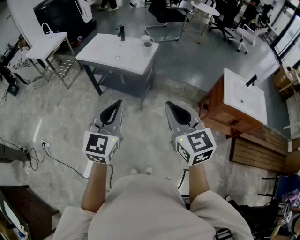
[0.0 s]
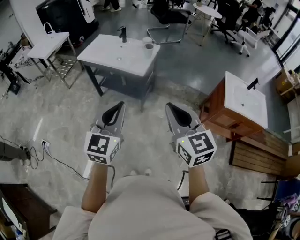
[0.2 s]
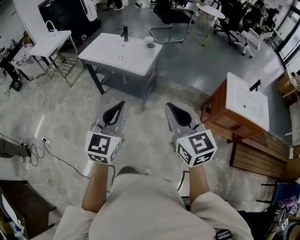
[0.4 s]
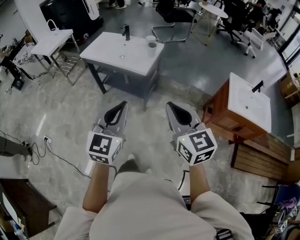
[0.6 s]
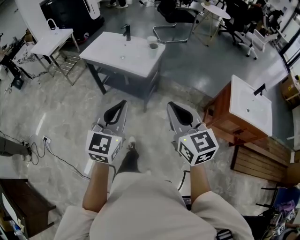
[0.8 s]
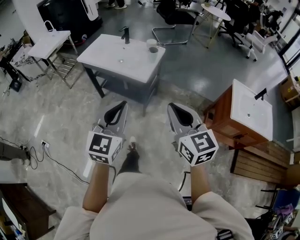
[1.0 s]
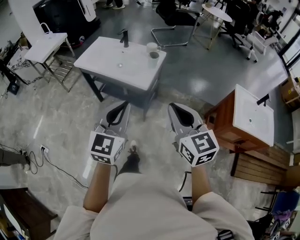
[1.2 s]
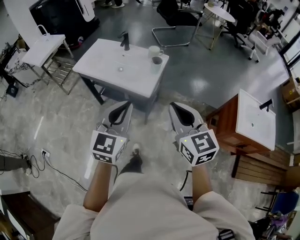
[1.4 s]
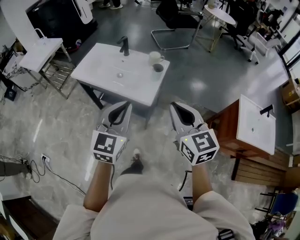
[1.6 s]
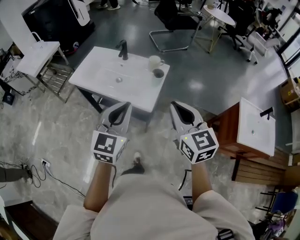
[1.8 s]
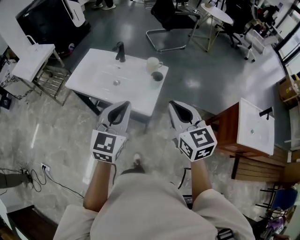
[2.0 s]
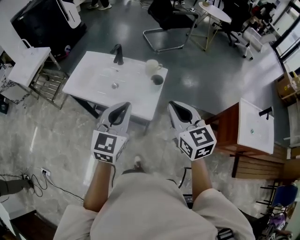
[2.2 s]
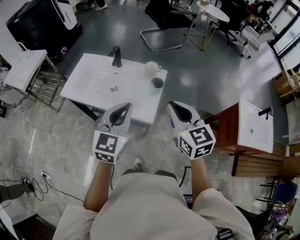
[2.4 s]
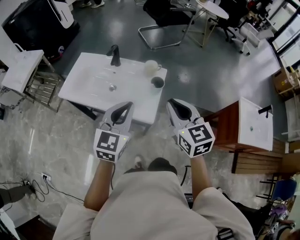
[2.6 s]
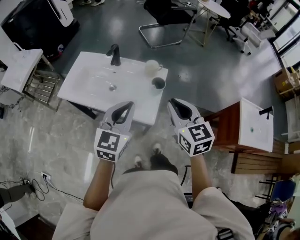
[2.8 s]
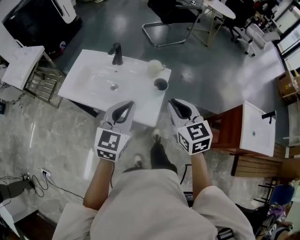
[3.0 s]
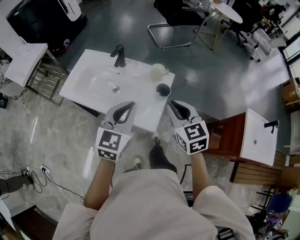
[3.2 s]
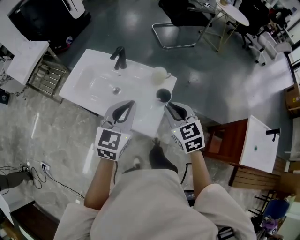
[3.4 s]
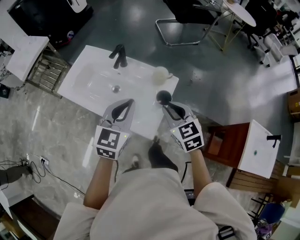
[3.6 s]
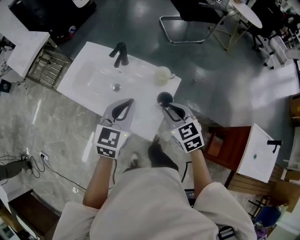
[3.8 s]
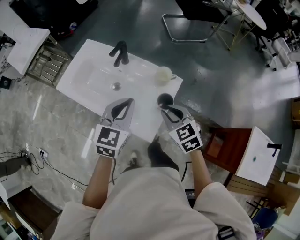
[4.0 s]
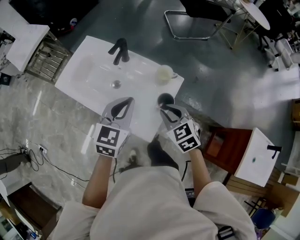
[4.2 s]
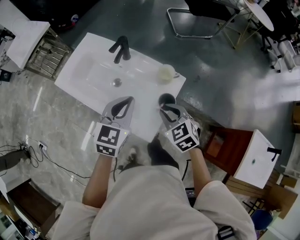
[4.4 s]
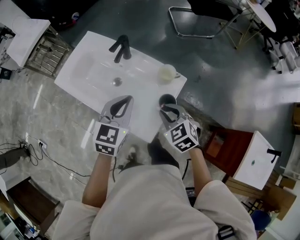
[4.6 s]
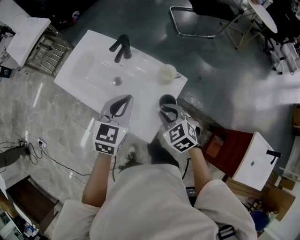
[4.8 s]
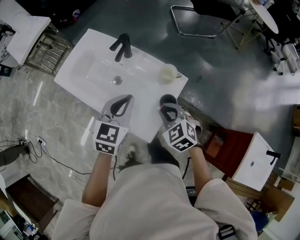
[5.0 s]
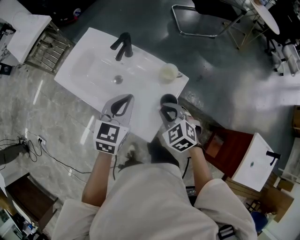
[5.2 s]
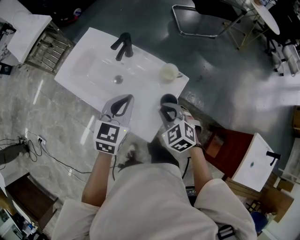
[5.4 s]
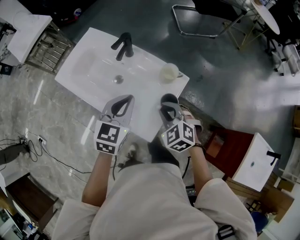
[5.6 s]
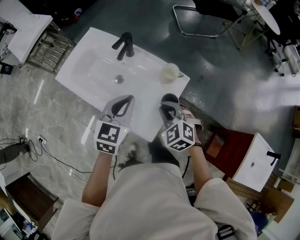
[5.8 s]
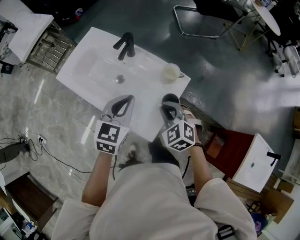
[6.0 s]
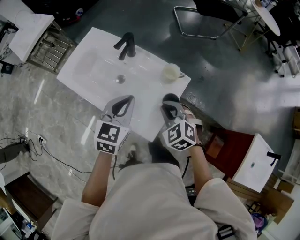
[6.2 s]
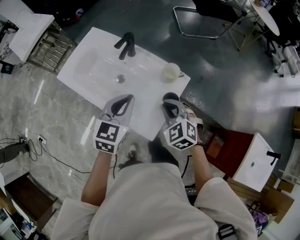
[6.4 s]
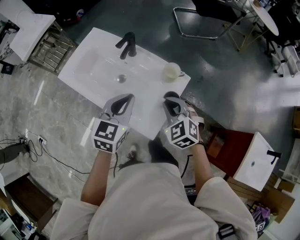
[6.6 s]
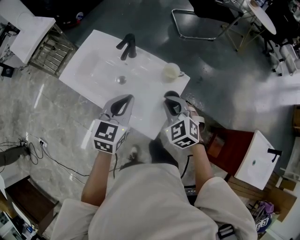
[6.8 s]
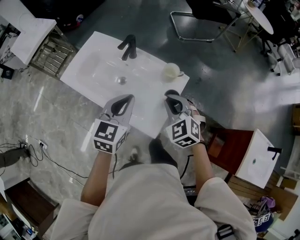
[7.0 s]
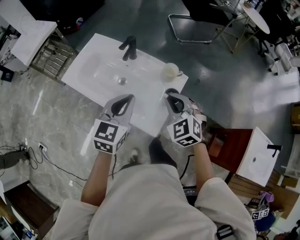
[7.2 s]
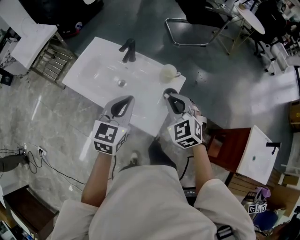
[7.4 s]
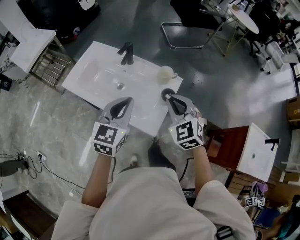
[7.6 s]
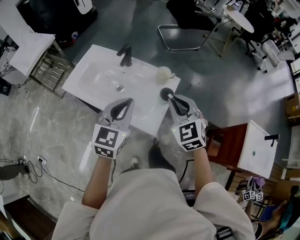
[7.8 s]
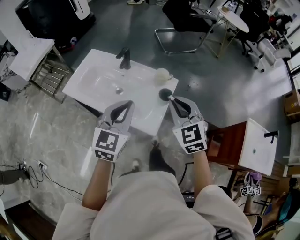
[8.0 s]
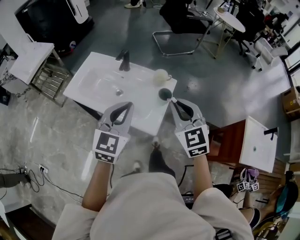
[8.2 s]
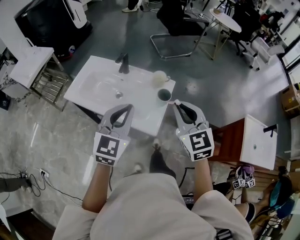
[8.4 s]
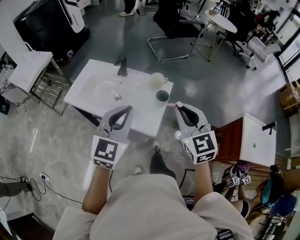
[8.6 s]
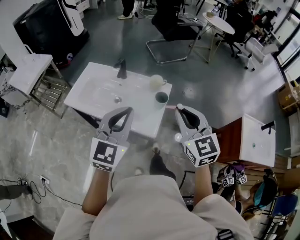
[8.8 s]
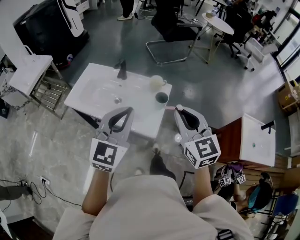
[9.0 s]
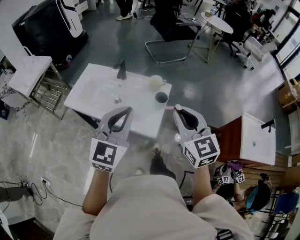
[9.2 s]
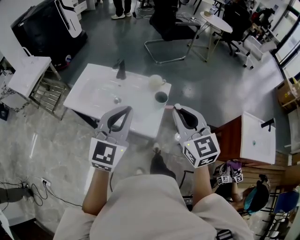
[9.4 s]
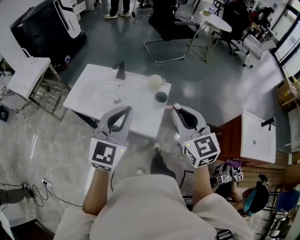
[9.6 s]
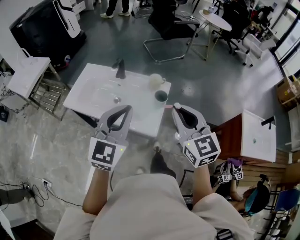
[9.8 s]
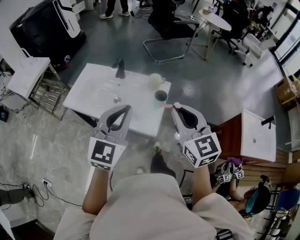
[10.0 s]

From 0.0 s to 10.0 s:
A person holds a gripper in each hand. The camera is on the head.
From 0.0 s to 1.4 s: The grippers both shift forward by roughly 25 cm.
From 1.4 s to 2.8 s: The two grippers go roughly 25 cm forward.
From 2.8 s to 4.2 s: The left gripper moves forward and downward, approximately 20 cm. The right gripper heads downward and forward, covering some 25 cm, and rotates approximately 30 degrees.
From 4.2 s to 5.8 s: The right gripper rotates some 20 degrees.
From 5.8 s to 7.2 s: The left gripper goes about 5 cm upward and backward; the right gripper travels upward by some 10 cm.
From 7.2 s to 8.6 s: The left gripper shifts some 15 cm backward and upward, and turns by approximately 20 degrees, while the right gripper heads upward and backward, covering approximately 20 cm, and rotates approximately 30 degrees.
From 8.6 s to 10.0 s: The grippers make only small movements.

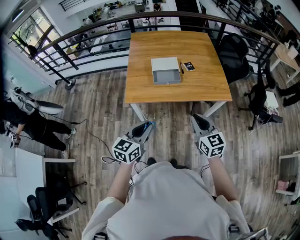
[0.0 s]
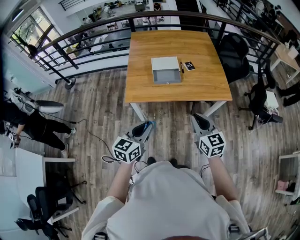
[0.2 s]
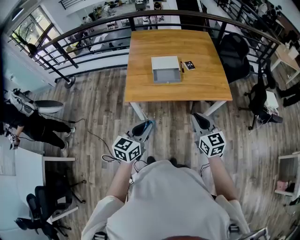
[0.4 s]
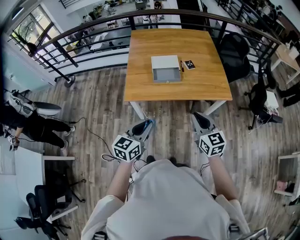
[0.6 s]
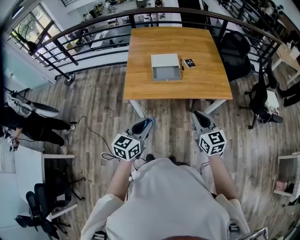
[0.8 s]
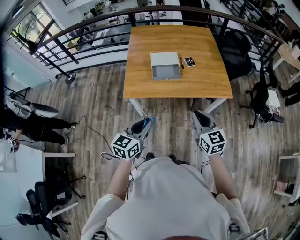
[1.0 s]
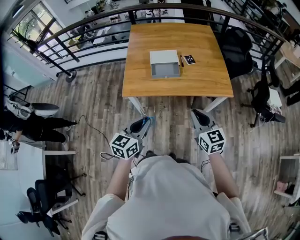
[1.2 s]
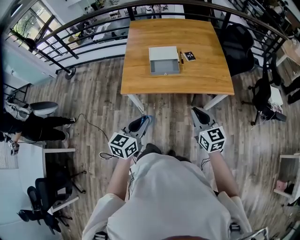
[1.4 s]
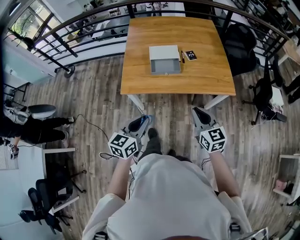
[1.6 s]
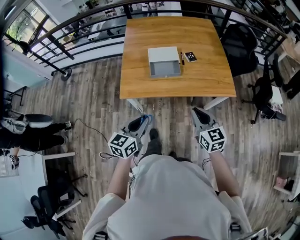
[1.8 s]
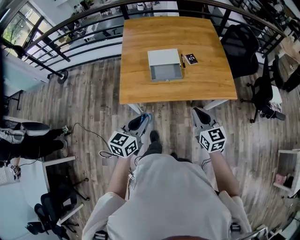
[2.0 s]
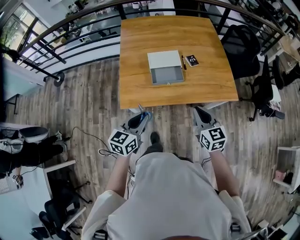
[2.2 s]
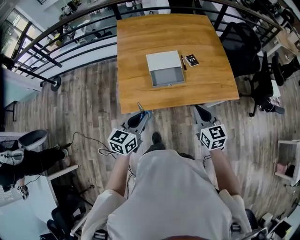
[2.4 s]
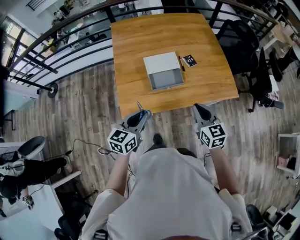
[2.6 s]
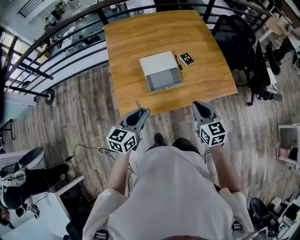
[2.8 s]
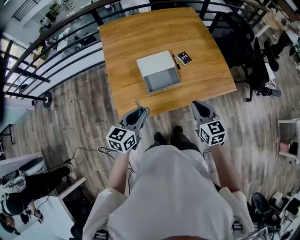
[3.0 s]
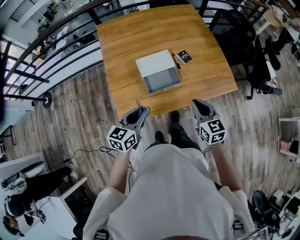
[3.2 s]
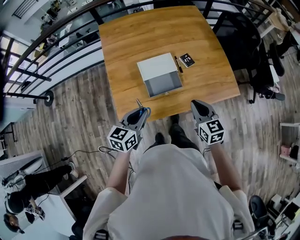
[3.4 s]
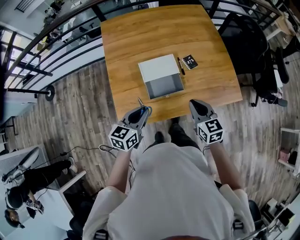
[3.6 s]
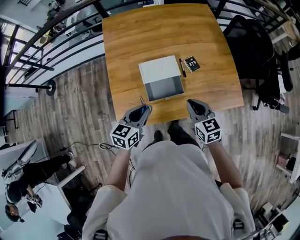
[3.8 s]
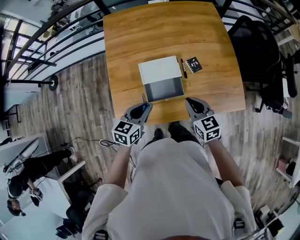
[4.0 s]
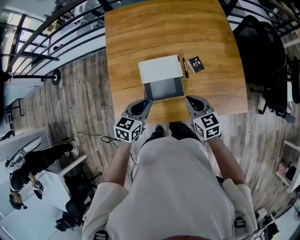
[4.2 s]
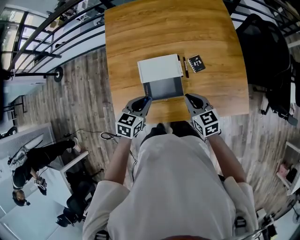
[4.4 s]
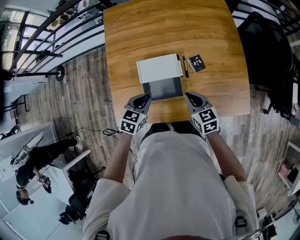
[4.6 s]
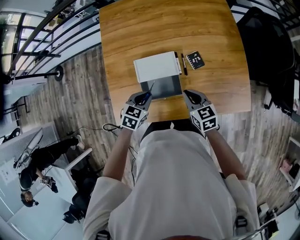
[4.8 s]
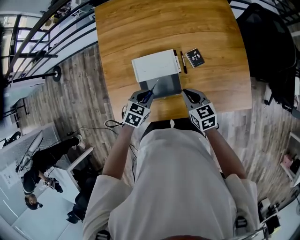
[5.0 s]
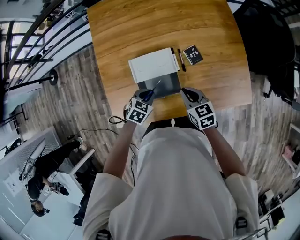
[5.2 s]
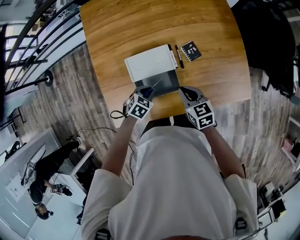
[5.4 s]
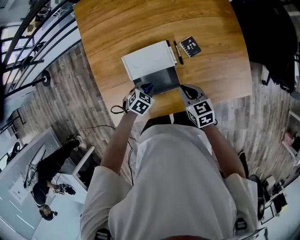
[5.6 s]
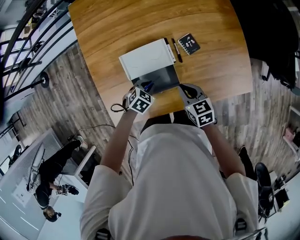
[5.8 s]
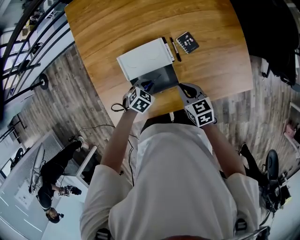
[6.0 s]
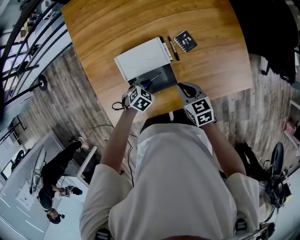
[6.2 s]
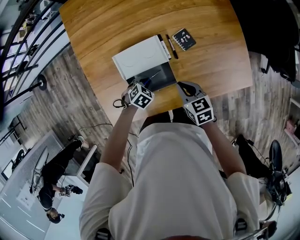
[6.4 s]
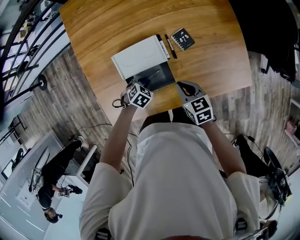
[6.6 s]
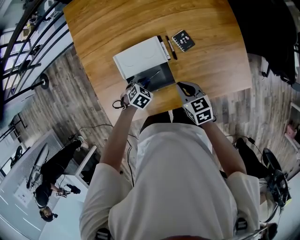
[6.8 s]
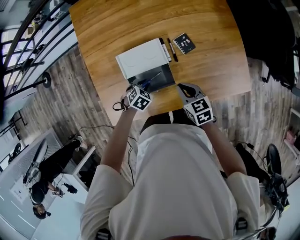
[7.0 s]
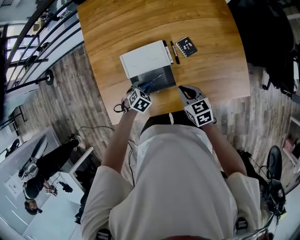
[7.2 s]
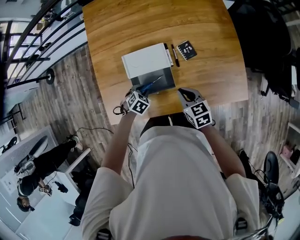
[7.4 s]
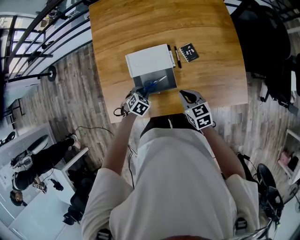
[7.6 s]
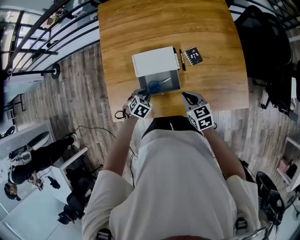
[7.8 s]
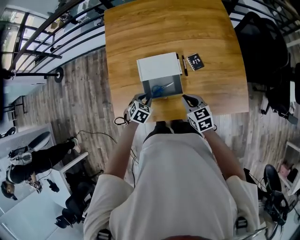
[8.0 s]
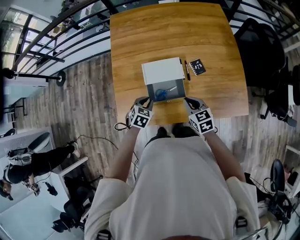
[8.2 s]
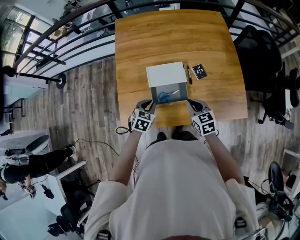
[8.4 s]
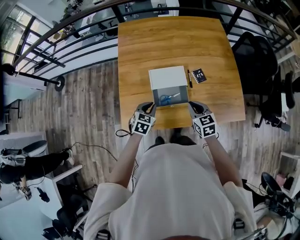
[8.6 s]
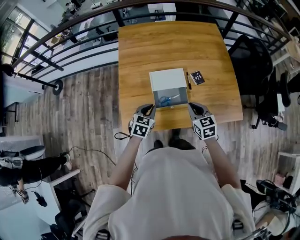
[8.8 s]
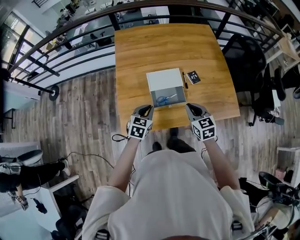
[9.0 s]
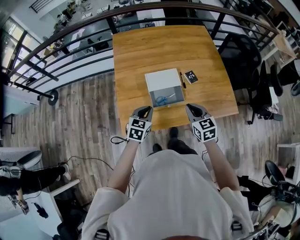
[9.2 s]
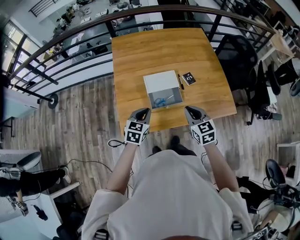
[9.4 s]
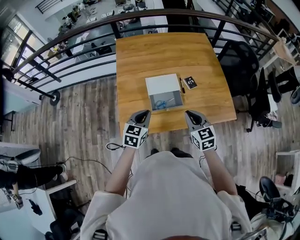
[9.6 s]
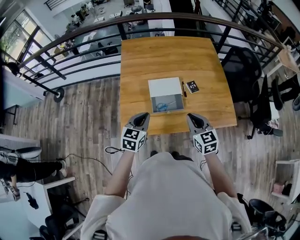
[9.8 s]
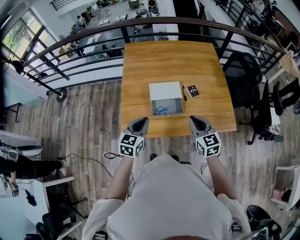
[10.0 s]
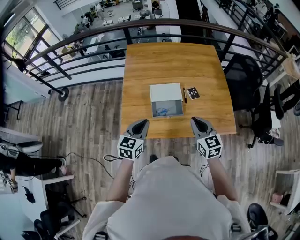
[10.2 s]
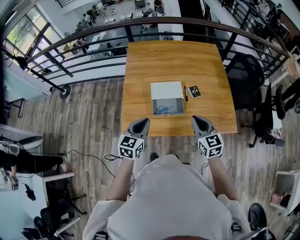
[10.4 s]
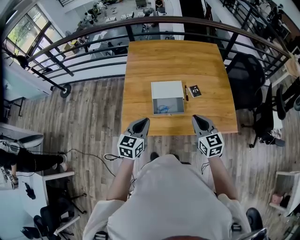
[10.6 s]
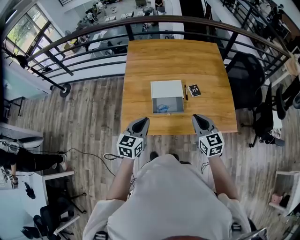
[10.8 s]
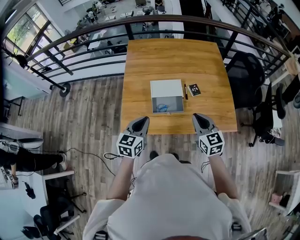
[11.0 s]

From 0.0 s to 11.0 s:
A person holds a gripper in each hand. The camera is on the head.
From 0.0 s to 1.6 s: The right gripper goes some 5 cm forward; the left gripper changes place by approximately 5 cm.
From 1.6 s to 3.2 s: The grippers both shift forward and to the left by approximately 30 cm.
From 3.2 s to 4.8 s: The left gripper is displaced forward, downward and to the right by some 25 cm, and rotates roughly 30 degrees, while the right gripper shifts about 25 cm forward and downward, and swivels roughly 20 degrees.
From 4.8 s to 6.2 s: The left gripper heads downward, covering roughly 15 cm, and swivels some 30 degrees. The right gripper travels downward by about 10 cm.
From 6.2 s to 7.8 s: The left gripper moves backward and to the left, some 10 cm. Meanwhile the right gripper changes place by roughly 5 cm.
From 7.8 s to 9.4 s: The right gripper is displaced upward, backward and to the left by about 20 cm, and turns by about 20 degrees. The left gripper heads upward and backward, covering roughly 25 cm, tips its fingers upward by some 40 degrees, and closes.
From 9.4 s to 11.0 s: The left gripper shifts approximately 10 cm upward and backward; the right gripper is displaced upward and to the right by approximately 10 cm.

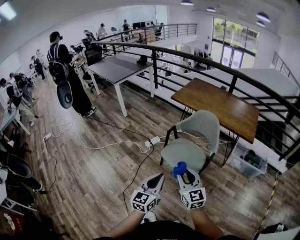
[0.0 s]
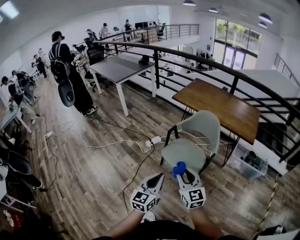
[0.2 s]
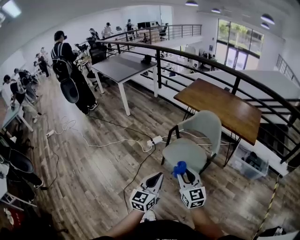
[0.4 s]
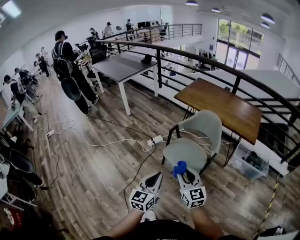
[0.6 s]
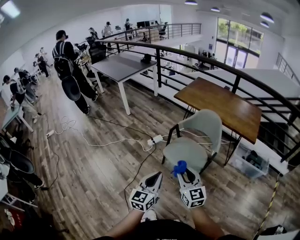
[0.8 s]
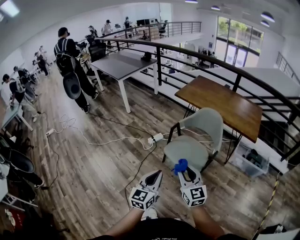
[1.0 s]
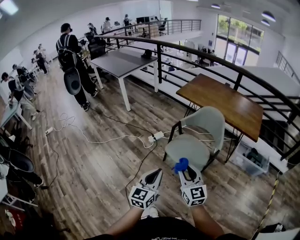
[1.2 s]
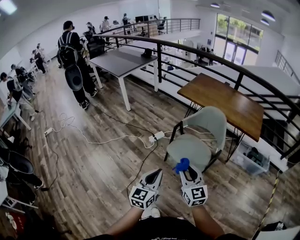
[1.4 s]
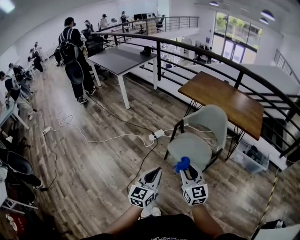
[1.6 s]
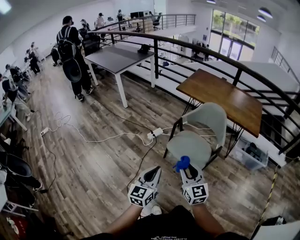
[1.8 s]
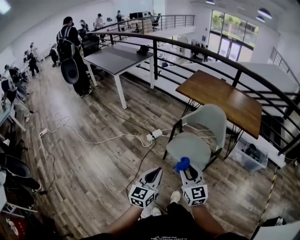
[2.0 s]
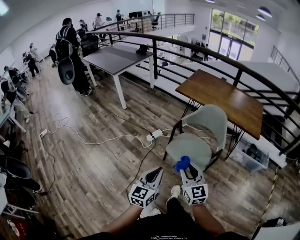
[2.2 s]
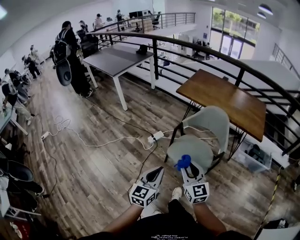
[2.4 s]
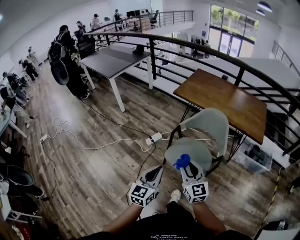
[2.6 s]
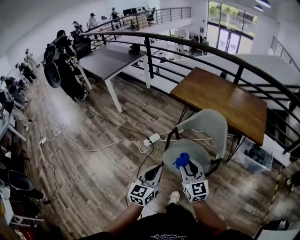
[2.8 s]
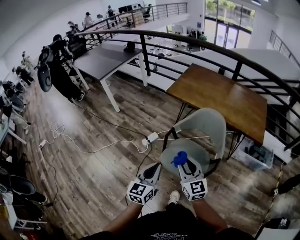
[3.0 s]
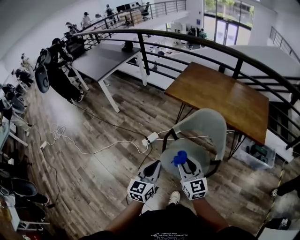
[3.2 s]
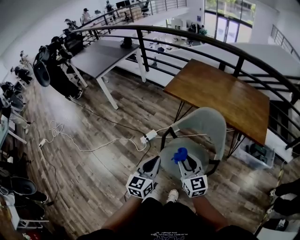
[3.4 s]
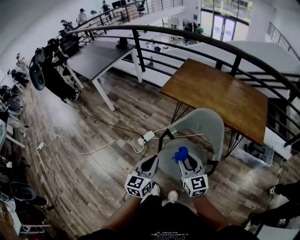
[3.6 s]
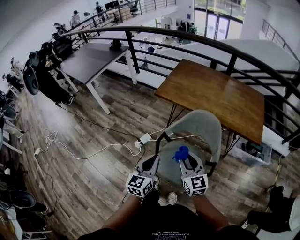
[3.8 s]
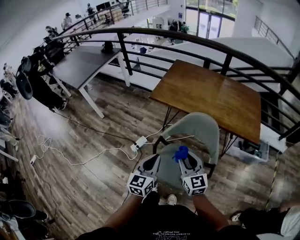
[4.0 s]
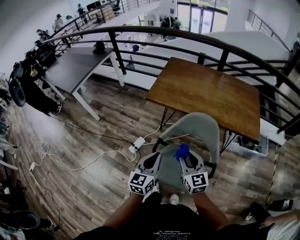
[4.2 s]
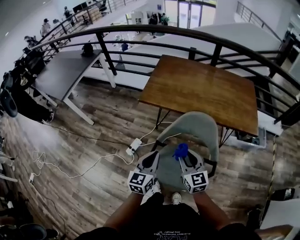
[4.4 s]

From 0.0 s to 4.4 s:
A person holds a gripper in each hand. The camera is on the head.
From 0.0 s to 1.4 s: The left gripper heads to the left, covering about 5 cm.
From 1.4 s to 3.0 s: The two grippers go about 20 cm forward.
From 3.0 s to 4.4 s: Both grippers travel together forward, about 25 cm.
